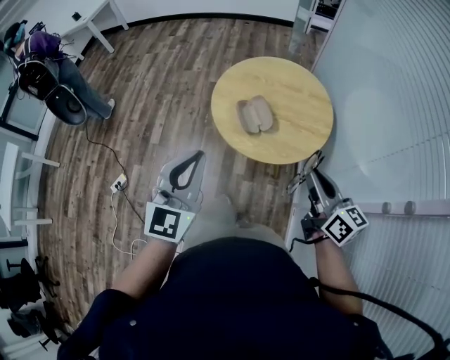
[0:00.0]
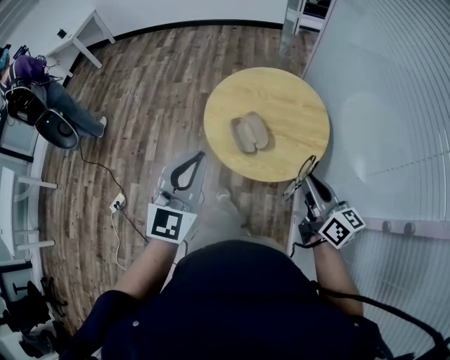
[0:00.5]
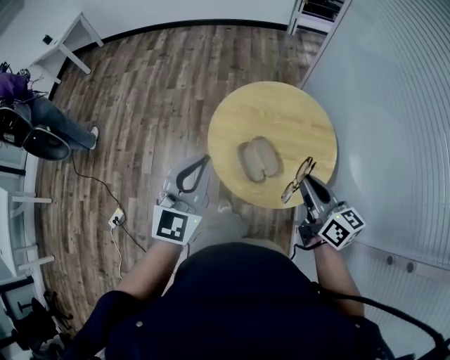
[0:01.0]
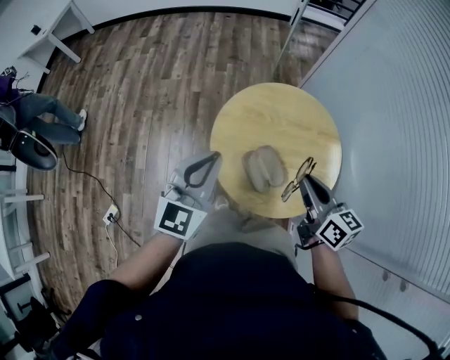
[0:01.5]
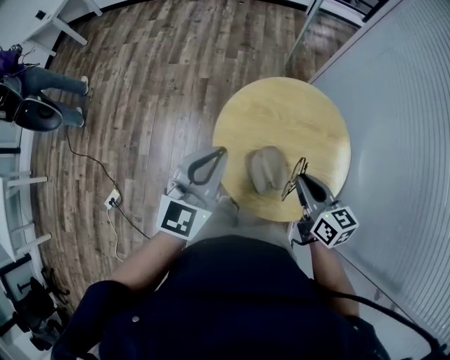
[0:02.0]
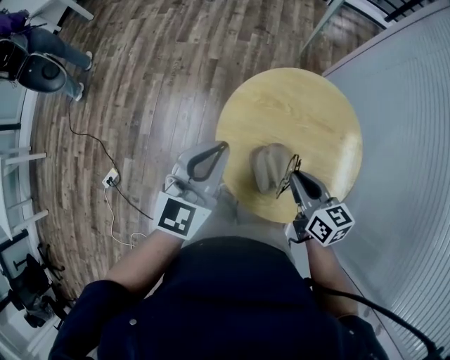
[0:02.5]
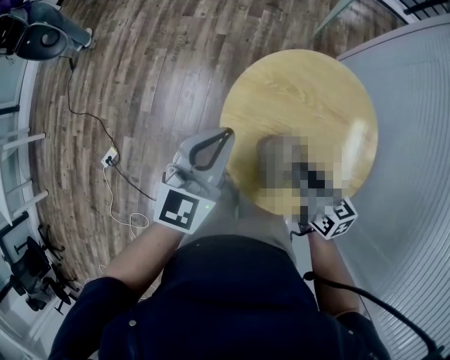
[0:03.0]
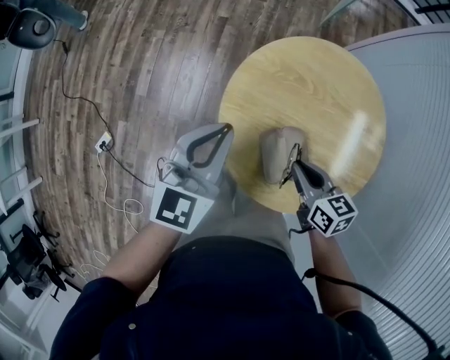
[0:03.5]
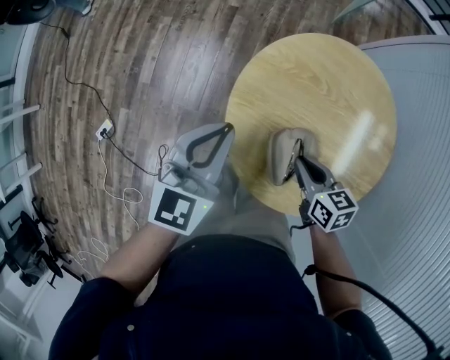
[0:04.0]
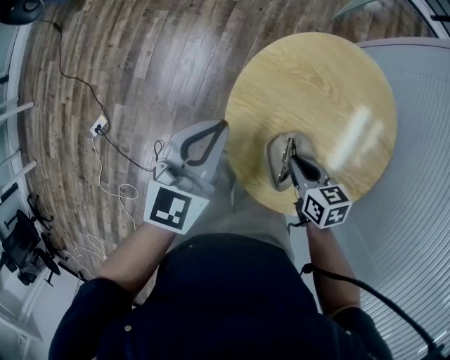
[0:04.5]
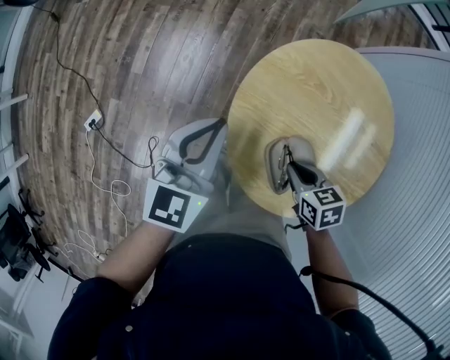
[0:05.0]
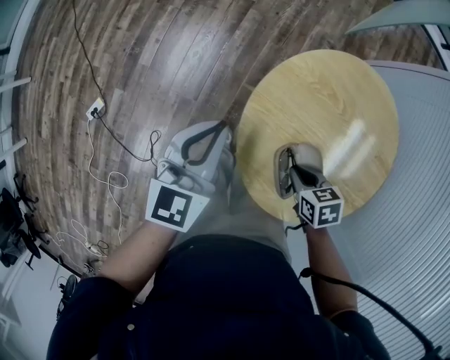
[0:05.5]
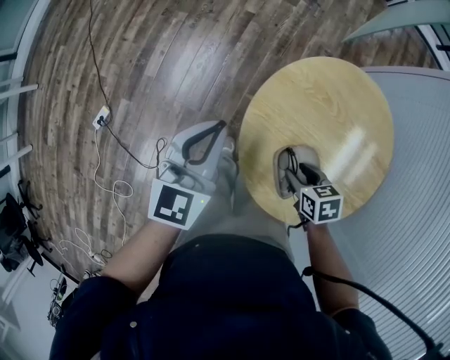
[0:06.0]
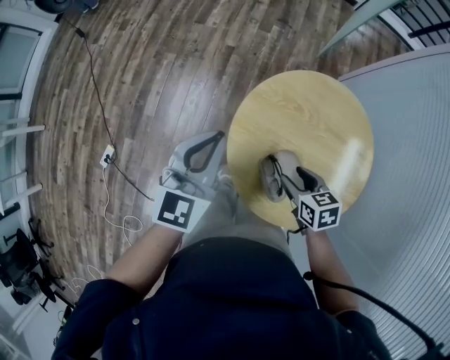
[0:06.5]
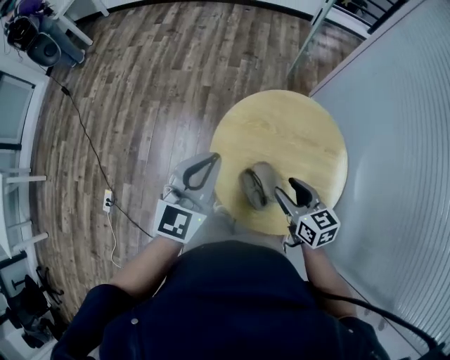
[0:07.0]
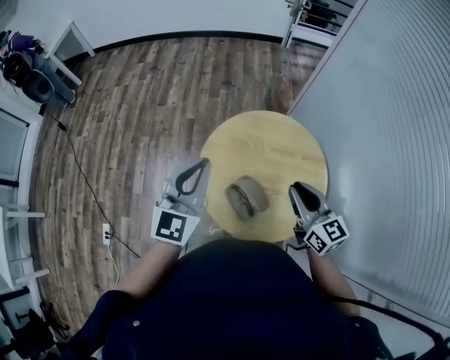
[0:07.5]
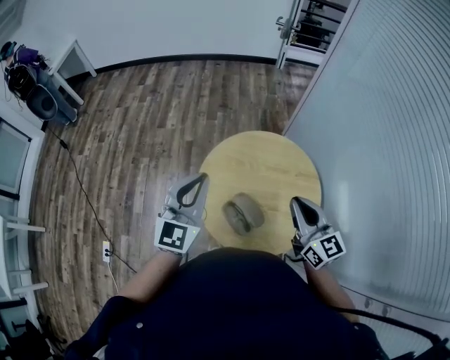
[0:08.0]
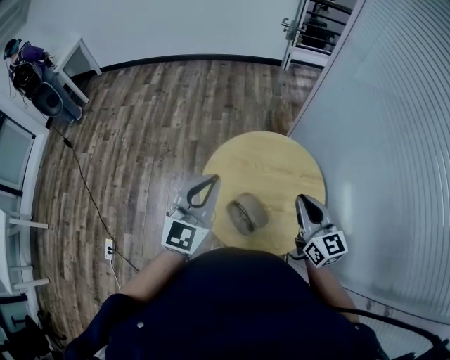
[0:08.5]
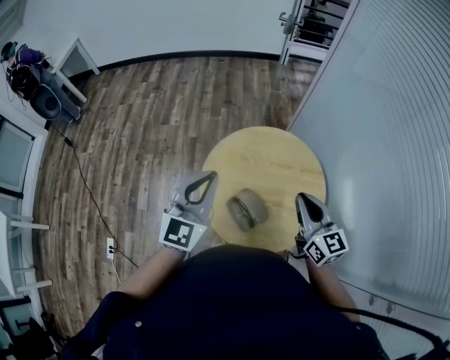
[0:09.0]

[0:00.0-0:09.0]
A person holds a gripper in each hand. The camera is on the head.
0:00.0 to 0:02.0: Both grippers travel together forward, some 35 cm.
0:02.0 to 0:04.5: Both grippers move downward, approximately 20 cm. The right gripper changes its angle by some 30 degrees.
0:04.5 to 0:07.0: The grippers both shift upward by about 15 cm. The right gripper swivels about 30 degrees, and opens up.
0:07.0 to 0:09.0: The right gripper heads upward and to the right, covering about 15 cm, changes its angle by approximately 30 degrees, and closes its fingers. The left gripper travels upward and to the right by approximately 10 cm.

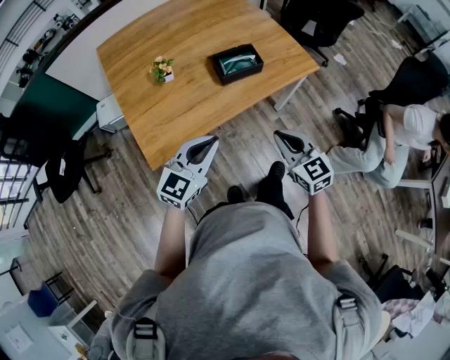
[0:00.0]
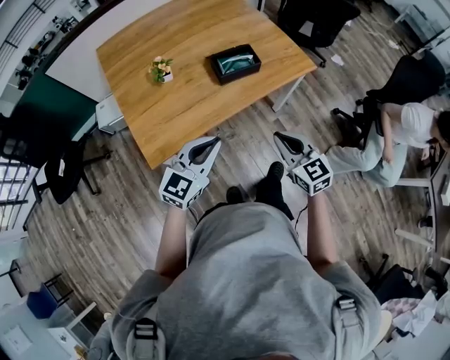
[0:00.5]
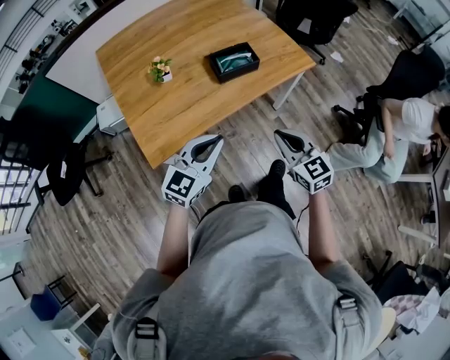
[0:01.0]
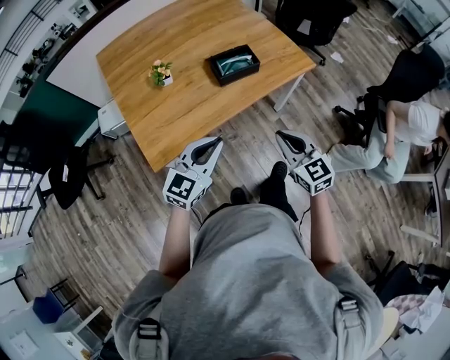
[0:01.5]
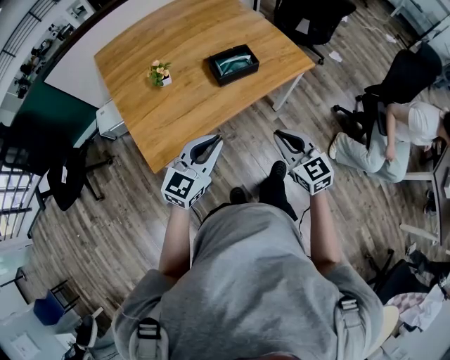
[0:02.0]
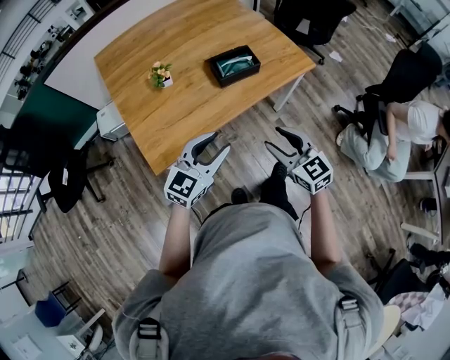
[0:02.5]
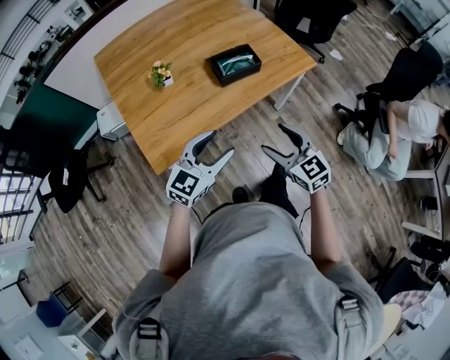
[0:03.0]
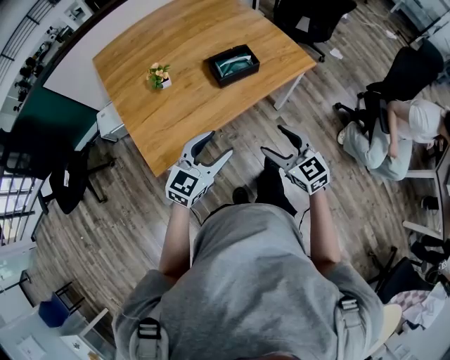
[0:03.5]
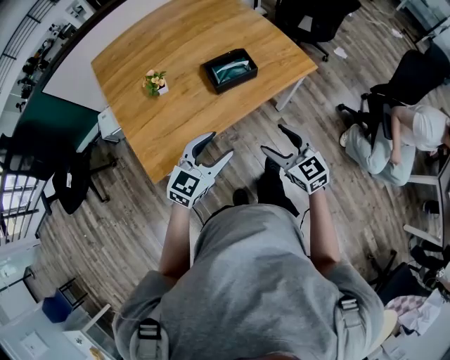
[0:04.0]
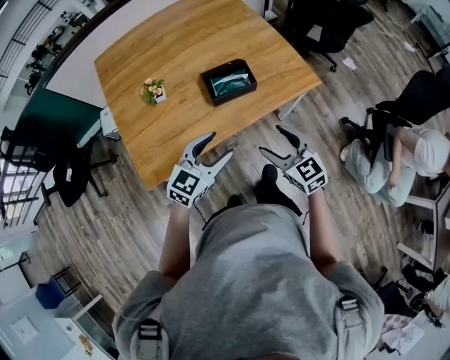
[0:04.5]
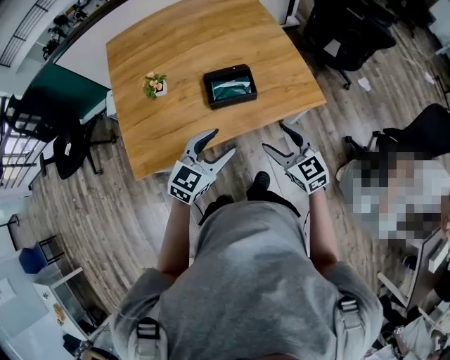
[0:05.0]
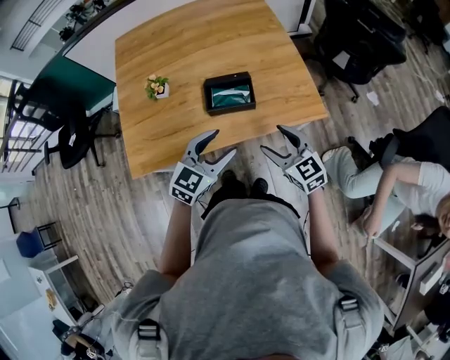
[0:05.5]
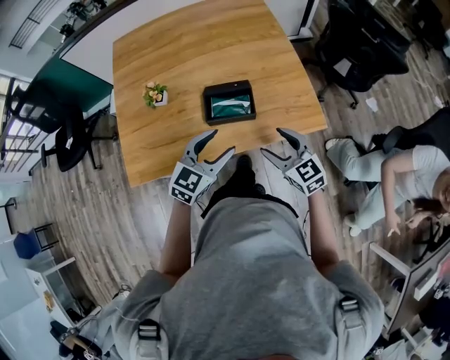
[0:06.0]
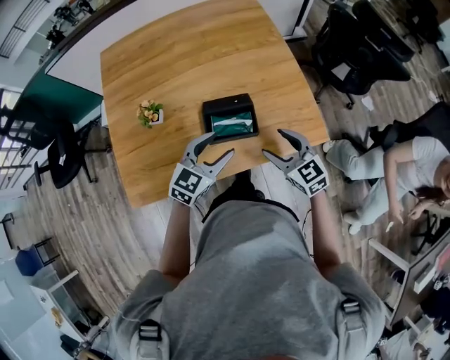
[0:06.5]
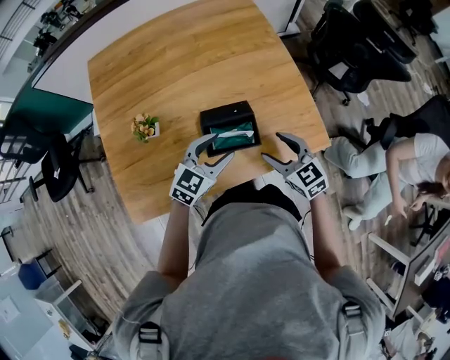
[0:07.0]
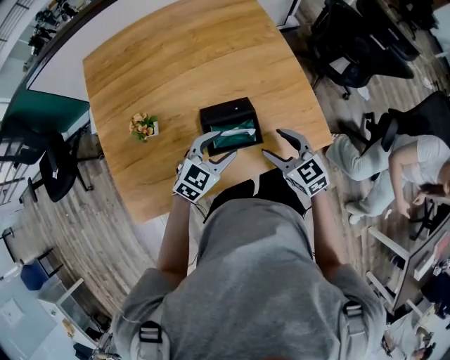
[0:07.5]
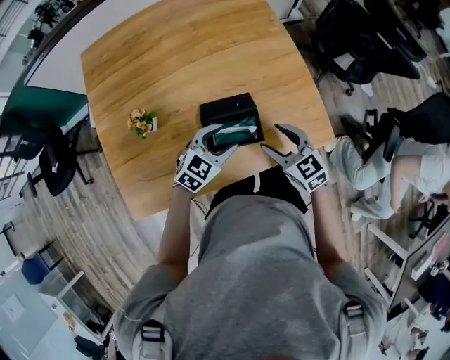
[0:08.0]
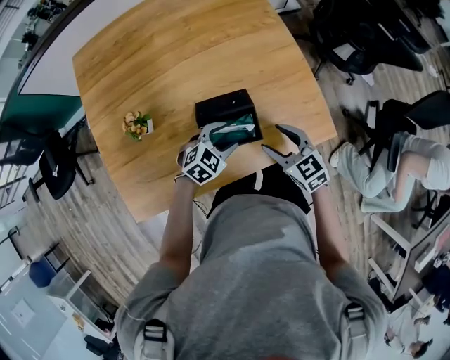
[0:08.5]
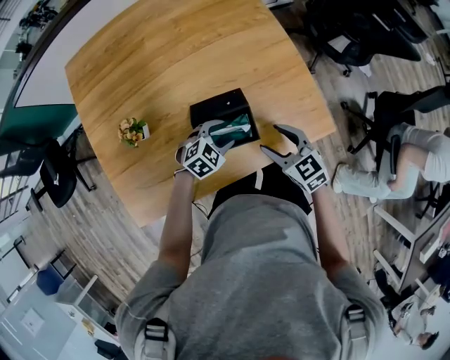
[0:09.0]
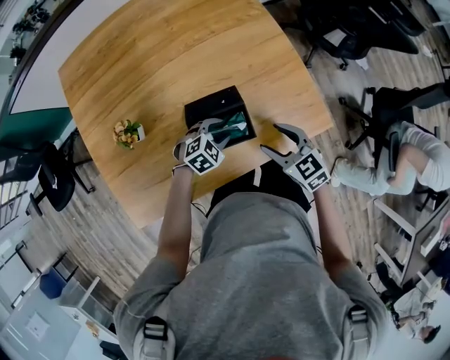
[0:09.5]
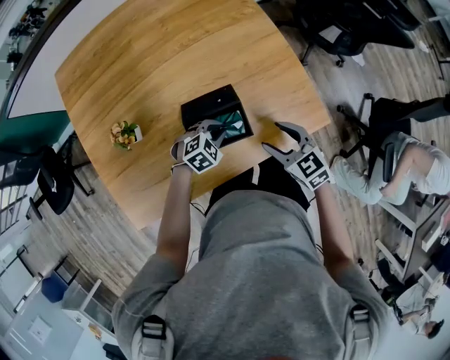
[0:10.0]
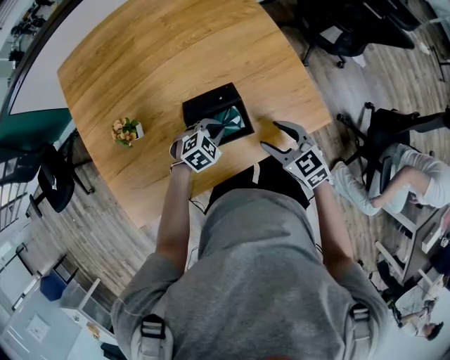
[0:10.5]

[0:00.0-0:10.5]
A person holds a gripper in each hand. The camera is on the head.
0:00.0 to 0:02.0: The grippers move only a little.
0:02.0 to 0:04.0: Both grippers move forward, some 5 cm. The right gripper opens up; the left gripper opens up.
0:04.0 to 0:06.5: The two grippers go about 30 cm forward.
0:06.5 to 0:08.5: The right gripper shifts some 10 cm downward and forward; the left gripper goes roughly 15 cm downward and forward, and turns by about 30 degrees.
0:08.5 to 0:10.5: The left gripper moves downward, some 5 cm, and closes up.

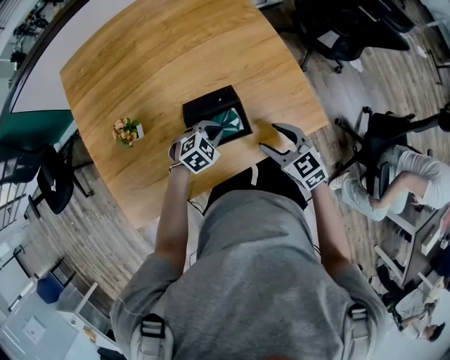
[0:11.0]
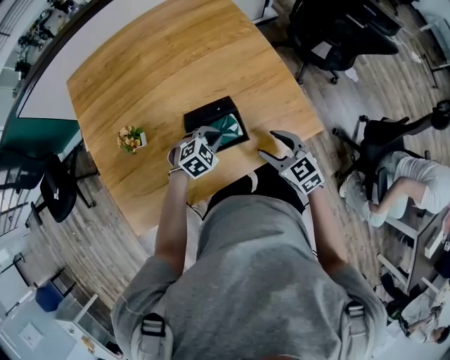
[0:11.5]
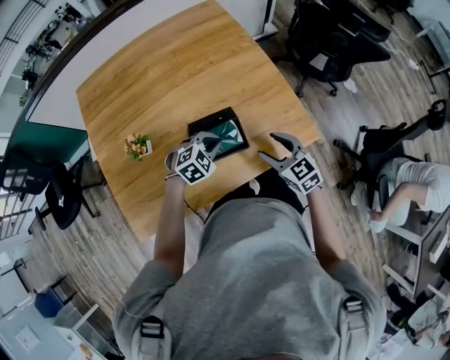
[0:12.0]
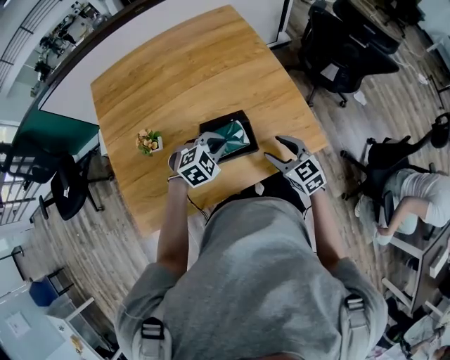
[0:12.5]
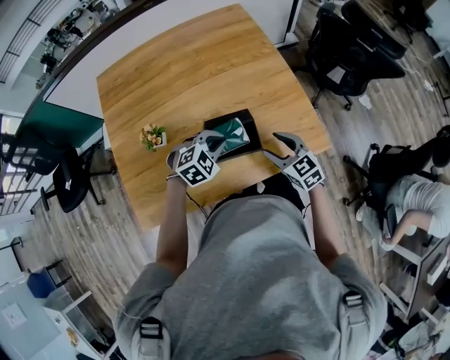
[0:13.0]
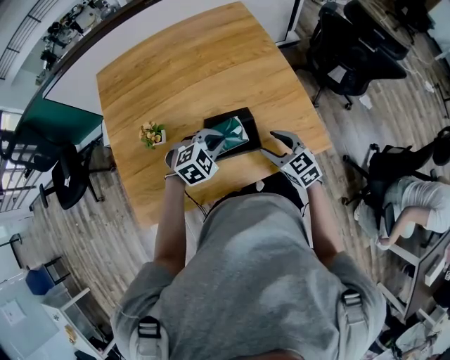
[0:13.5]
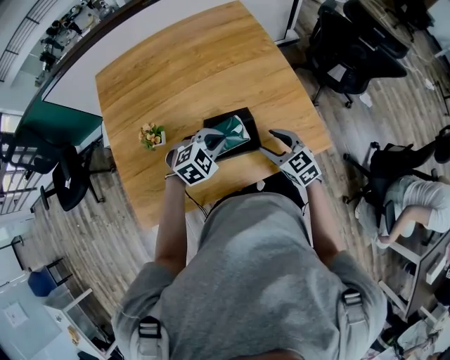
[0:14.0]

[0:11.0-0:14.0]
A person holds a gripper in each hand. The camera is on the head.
0:11.0 to 0:12.5: The left gripper heads upward, covering about 15 cm.
0:12.5 to 0:14.0: There are only small adjustments of the grippers.

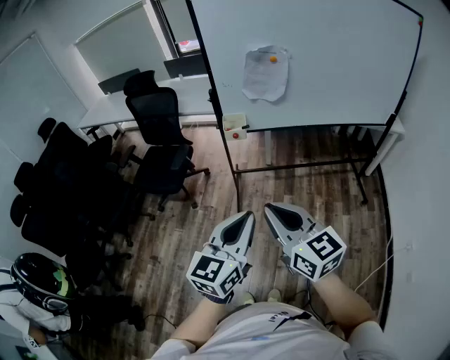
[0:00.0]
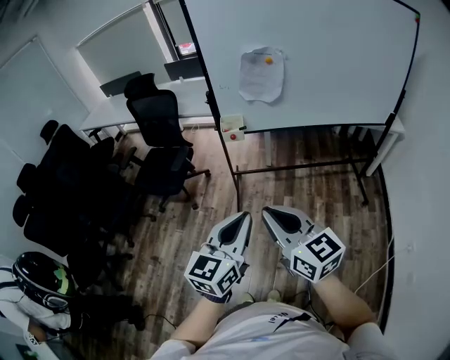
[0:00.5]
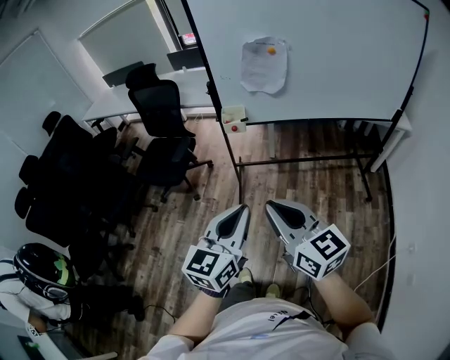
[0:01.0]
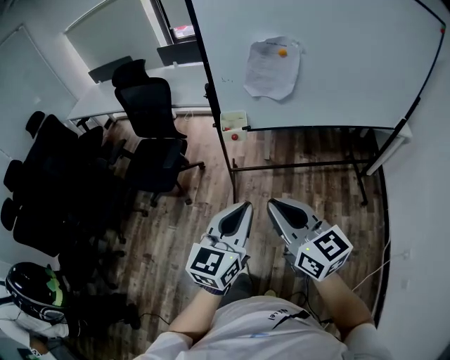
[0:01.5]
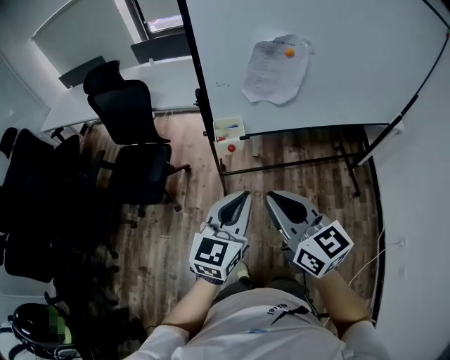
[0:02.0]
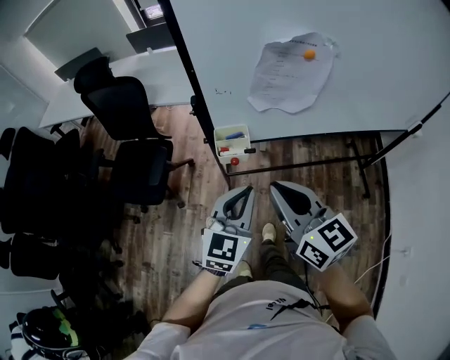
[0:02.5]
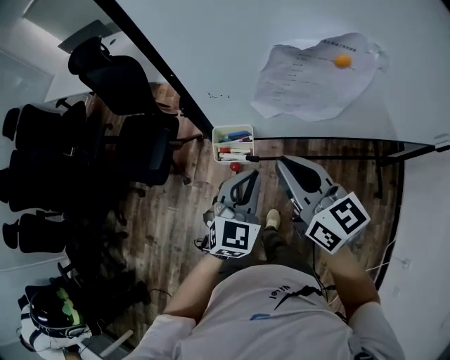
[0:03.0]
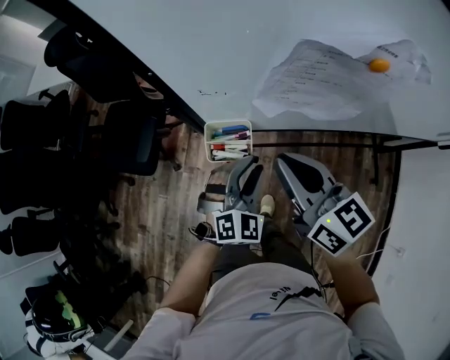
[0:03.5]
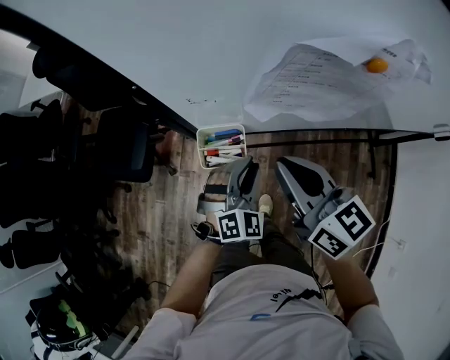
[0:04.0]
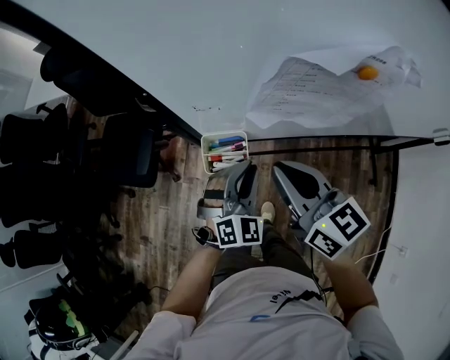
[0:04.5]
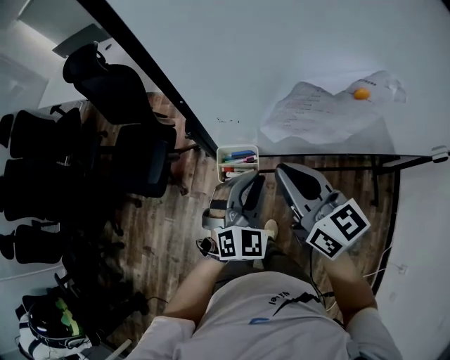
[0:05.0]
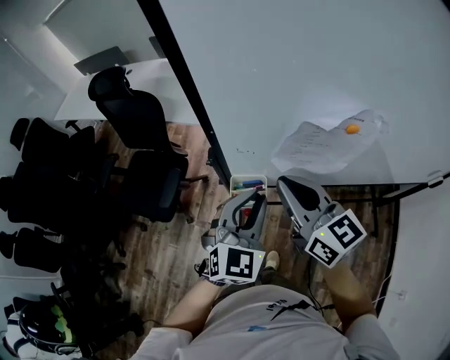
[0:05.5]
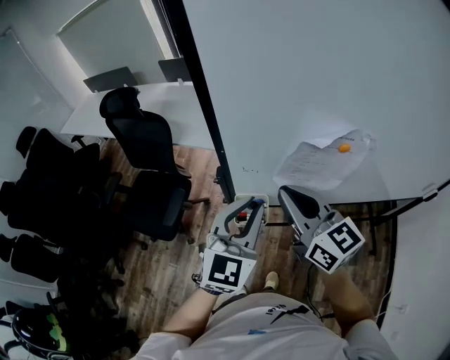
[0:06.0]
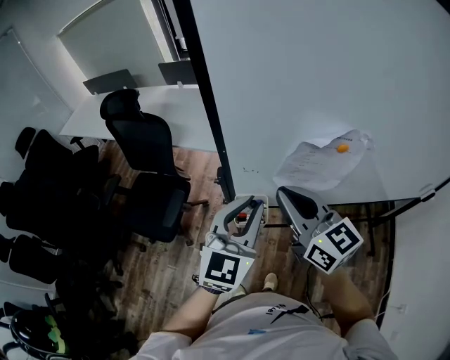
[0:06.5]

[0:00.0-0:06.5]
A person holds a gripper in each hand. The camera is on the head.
0:00.0 to 0:02.0: Both grippers move forward, about 25 cm.
0:02.0 to 0:04.5: The right gripper goes about 30 cm forward; the left gripper shifts roughly 35 cm forward and downward, and rotates around the line of its fingers by about 40 degrees, clockwise from behind.
0:04.5 to 0:06.5: The left gripper is displaced upward by some 25 cm, and turns by some 40 degrees. Meanwhile the right gripper is displaced upward by approximately 15 cm.
